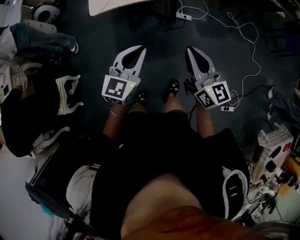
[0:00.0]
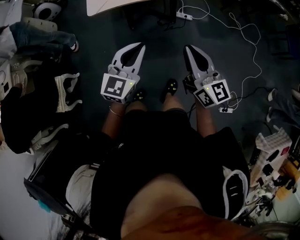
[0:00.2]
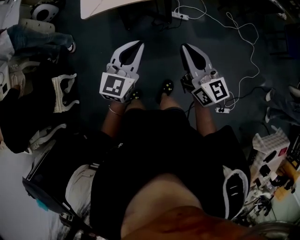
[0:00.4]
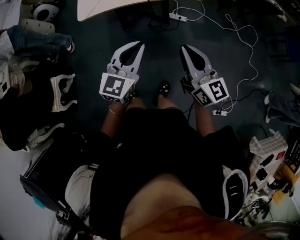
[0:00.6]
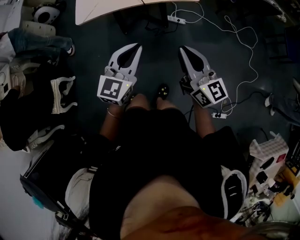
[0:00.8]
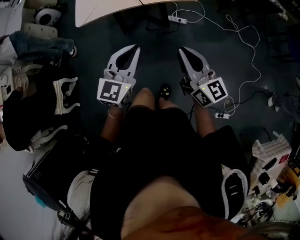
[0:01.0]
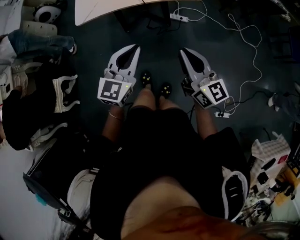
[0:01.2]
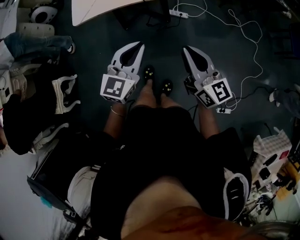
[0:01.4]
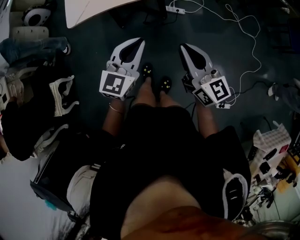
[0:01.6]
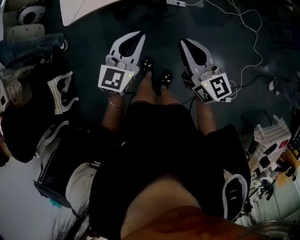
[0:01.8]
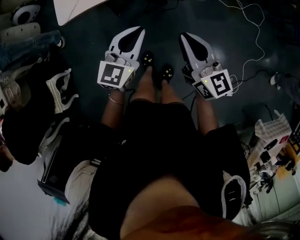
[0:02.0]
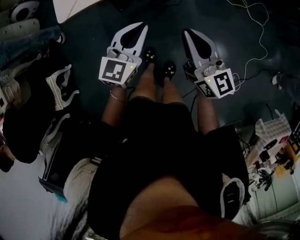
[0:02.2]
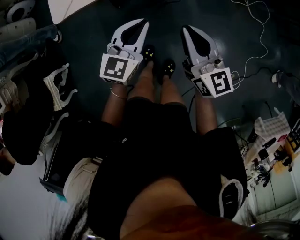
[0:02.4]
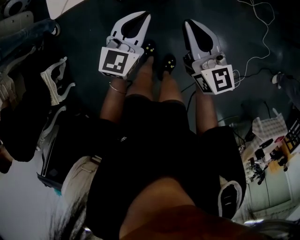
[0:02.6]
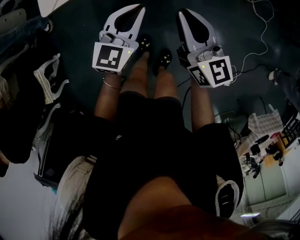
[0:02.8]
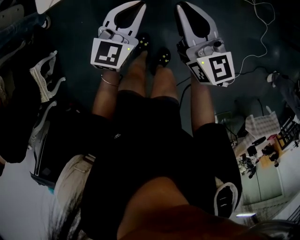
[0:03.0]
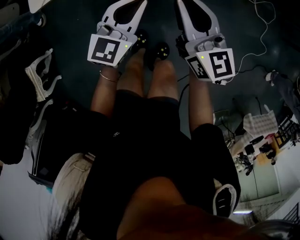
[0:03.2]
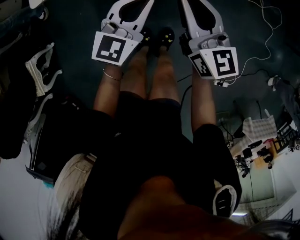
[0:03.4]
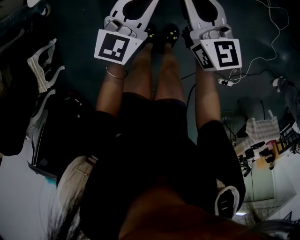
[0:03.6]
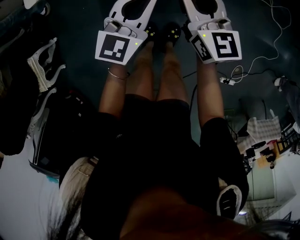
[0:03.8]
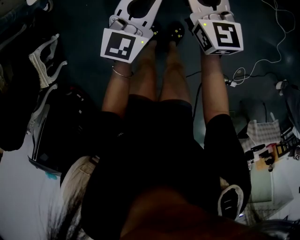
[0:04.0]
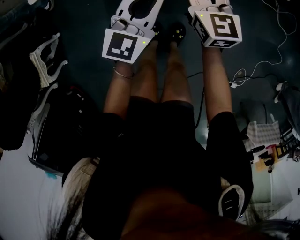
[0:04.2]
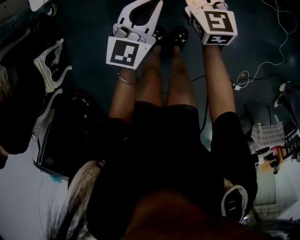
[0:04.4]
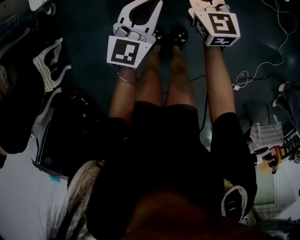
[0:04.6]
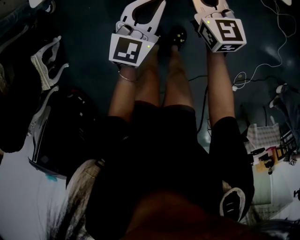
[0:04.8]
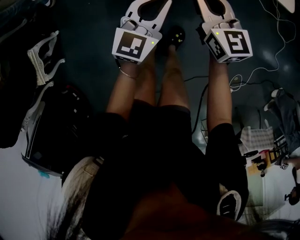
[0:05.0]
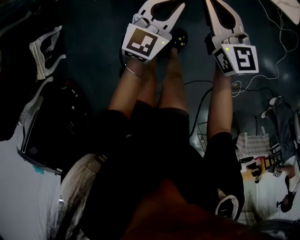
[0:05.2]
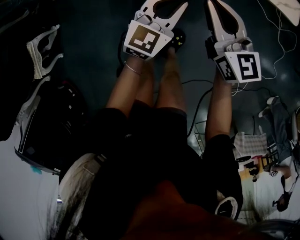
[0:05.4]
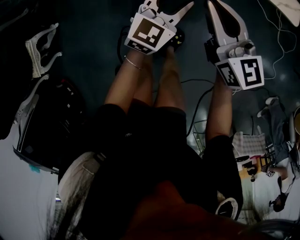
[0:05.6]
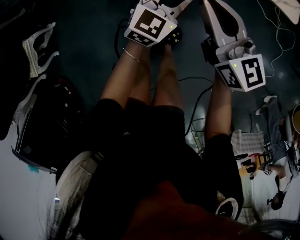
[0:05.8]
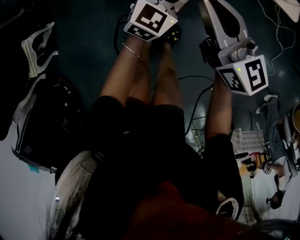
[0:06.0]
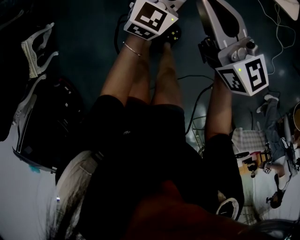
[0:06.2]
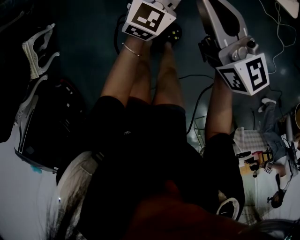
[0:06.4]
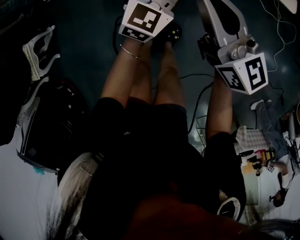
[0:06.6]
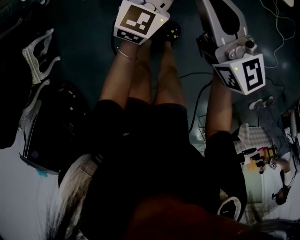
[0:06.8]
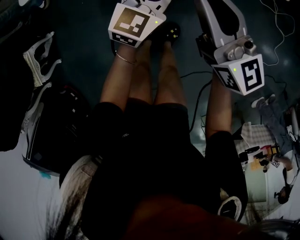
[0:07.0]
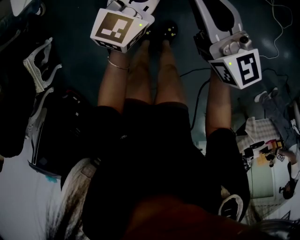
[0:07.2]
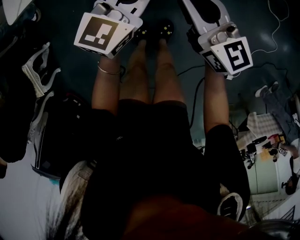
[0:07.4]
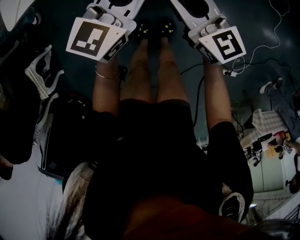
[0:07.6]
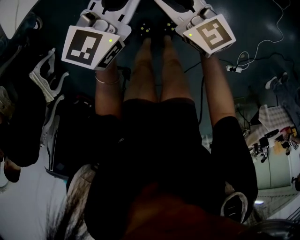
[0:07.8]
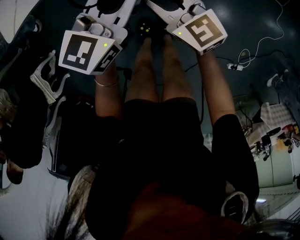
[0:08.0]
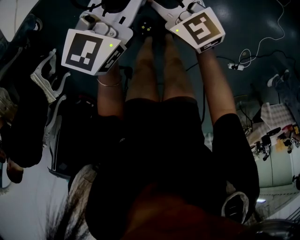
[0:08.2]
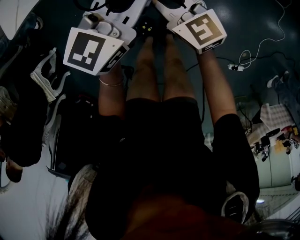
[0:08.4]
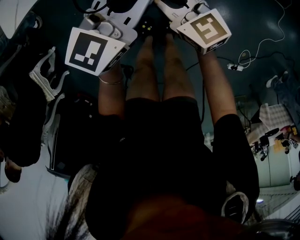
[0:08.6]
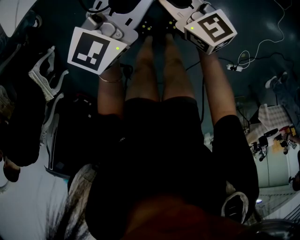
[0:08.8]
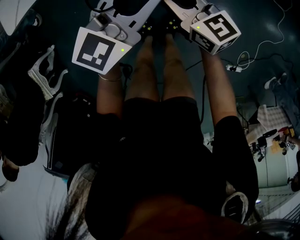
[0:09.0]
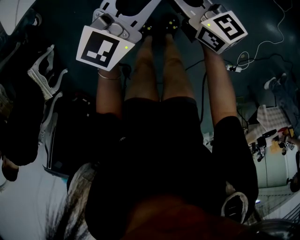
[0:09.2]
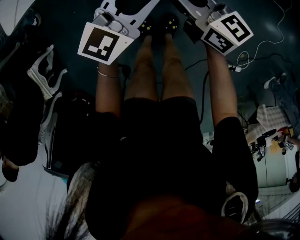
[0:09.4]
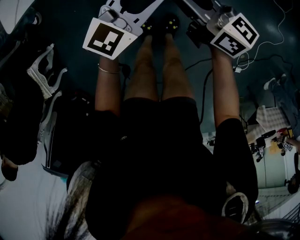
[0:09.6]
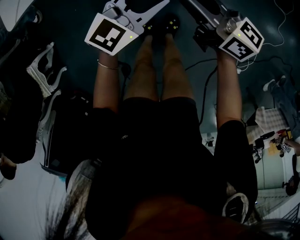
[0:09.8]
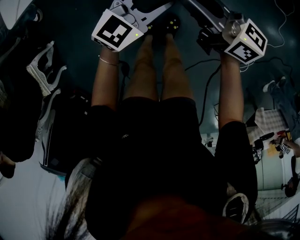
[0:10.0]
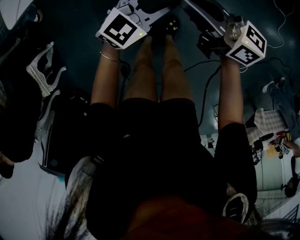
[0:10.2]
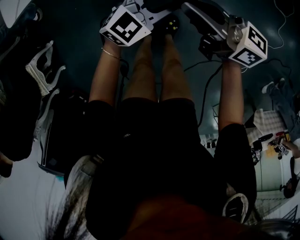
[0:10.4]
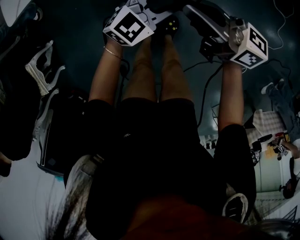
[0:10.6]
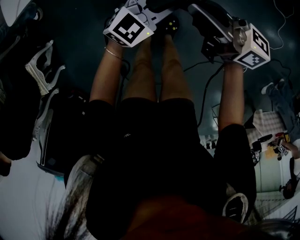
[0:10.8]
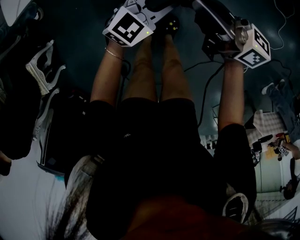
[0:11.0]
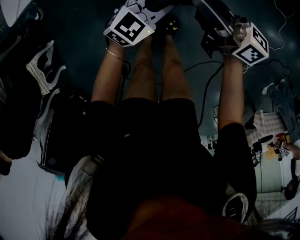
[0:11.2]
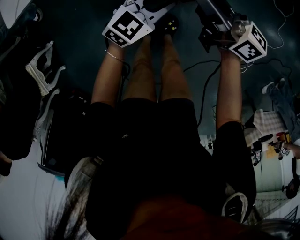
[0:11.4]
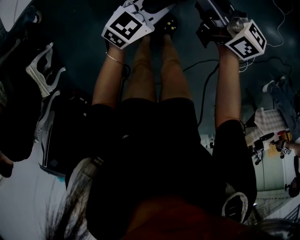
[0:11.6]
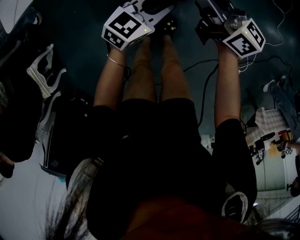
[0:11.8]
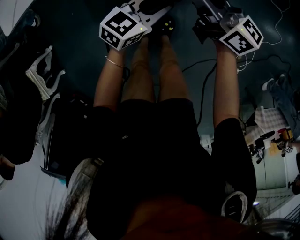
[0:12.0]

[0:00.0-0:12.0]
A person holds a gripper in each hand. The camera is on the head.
0:00.0 to 0:01.6: The two grippers go some 10 cm to the right and forward.
0:01.6 to 0:03.0: The right gripper goes about 20 cm forward, downward and to the left. Meanwhile the left gripper is displaced downward and forward by about 15 cm.
0:03.0 to 0:04.4: The left gripper goes roughly 5 cm downward. Meanwhile the right gripper heads downward and forward, covering some 20 cm, and opens up.
0:04.4 to 0:06.0: The left gripper shifts roughly 10 cm to the right and downward, and opens up. The right gripper is displaced upward and backward by approximately 10 cm, rotates some 30 degrees, and closes its fingers.
0:06.0 to 0:07.6: The left gripper travels upward by some 10 cm, while the right gripper travels downward by some 5 cm.
0:07.6 to 0:09.0: The grippers make only small movements.
0:09.0 to 0:10.4: The right gripper travels upward by approximately 10 cm, and turns by about 30 degrees. The left gripper heads downward, covering approximately 10 cm, and turns by some 20 degrees.
0:10.4 to 0:12.0: The left gripper changes its angle by some 30 degrees. The right gripper ends up some 10 cm from where it was.

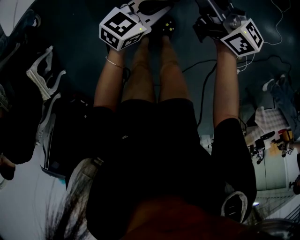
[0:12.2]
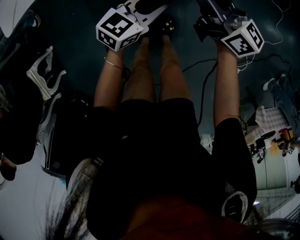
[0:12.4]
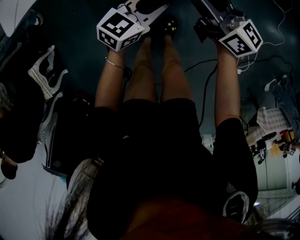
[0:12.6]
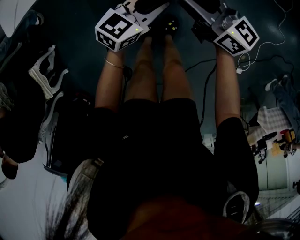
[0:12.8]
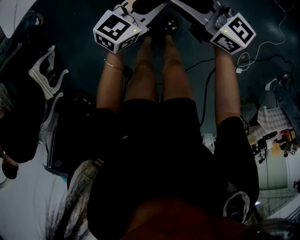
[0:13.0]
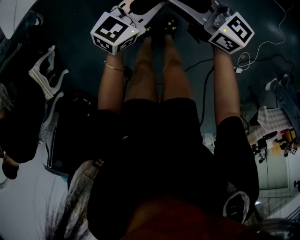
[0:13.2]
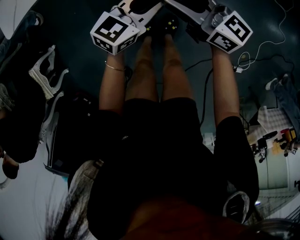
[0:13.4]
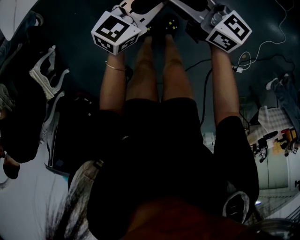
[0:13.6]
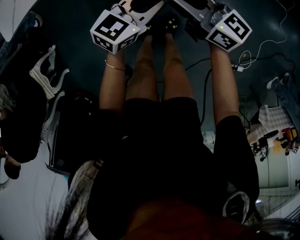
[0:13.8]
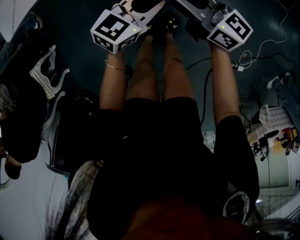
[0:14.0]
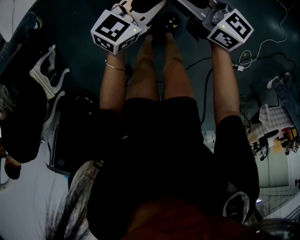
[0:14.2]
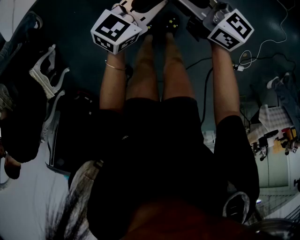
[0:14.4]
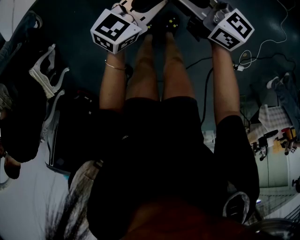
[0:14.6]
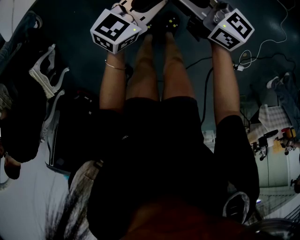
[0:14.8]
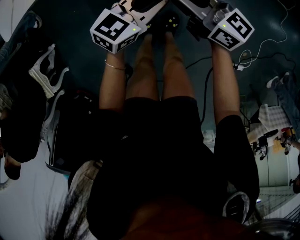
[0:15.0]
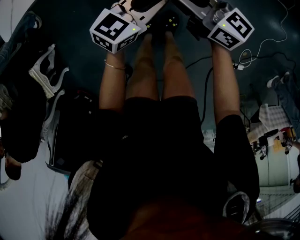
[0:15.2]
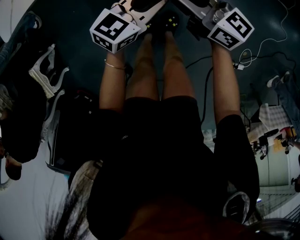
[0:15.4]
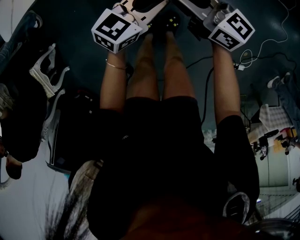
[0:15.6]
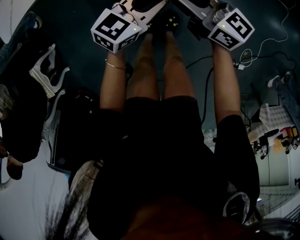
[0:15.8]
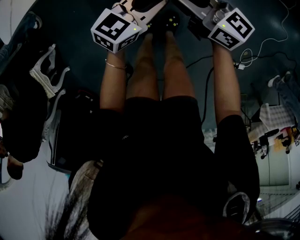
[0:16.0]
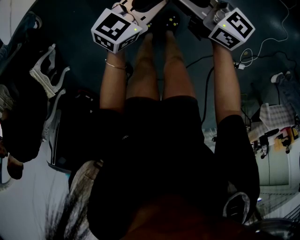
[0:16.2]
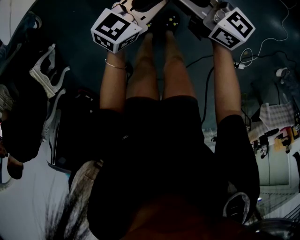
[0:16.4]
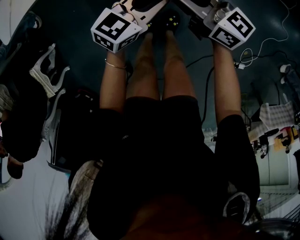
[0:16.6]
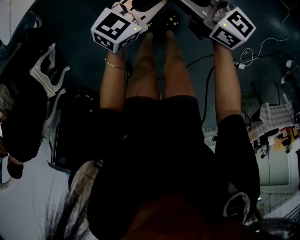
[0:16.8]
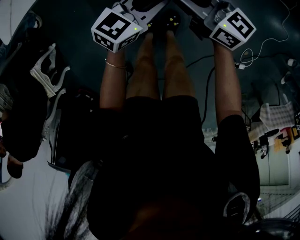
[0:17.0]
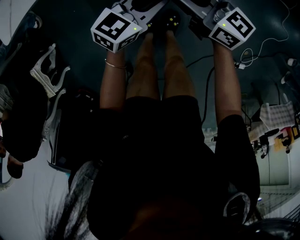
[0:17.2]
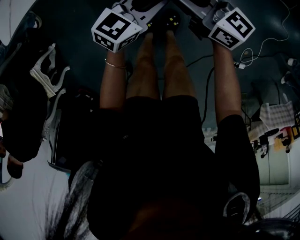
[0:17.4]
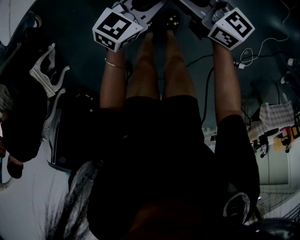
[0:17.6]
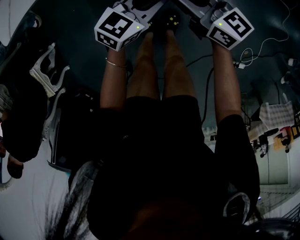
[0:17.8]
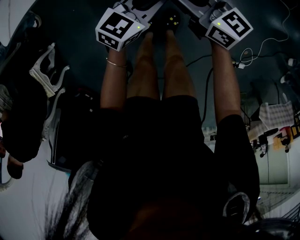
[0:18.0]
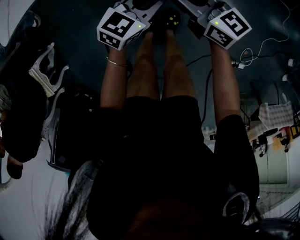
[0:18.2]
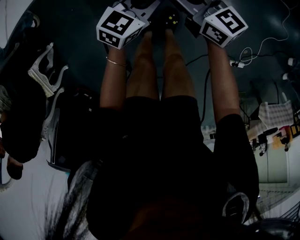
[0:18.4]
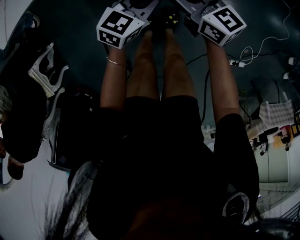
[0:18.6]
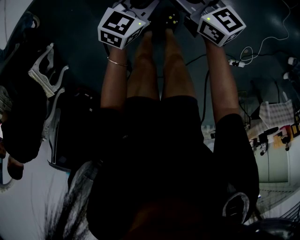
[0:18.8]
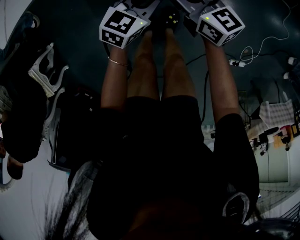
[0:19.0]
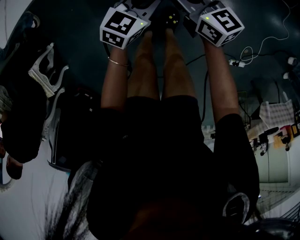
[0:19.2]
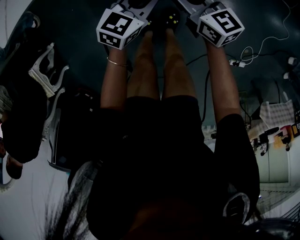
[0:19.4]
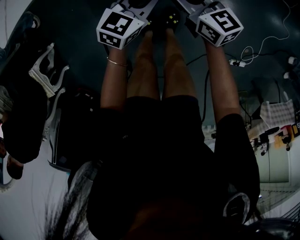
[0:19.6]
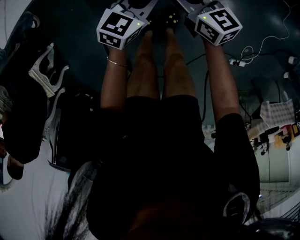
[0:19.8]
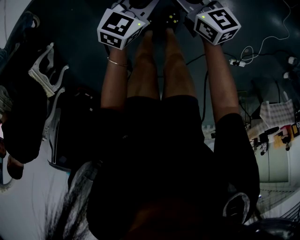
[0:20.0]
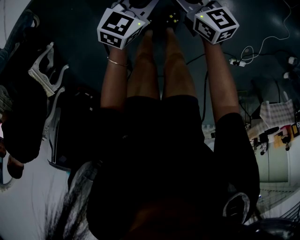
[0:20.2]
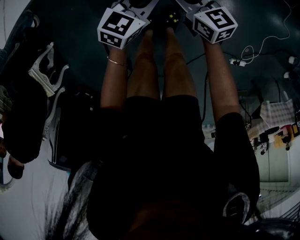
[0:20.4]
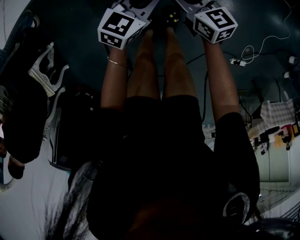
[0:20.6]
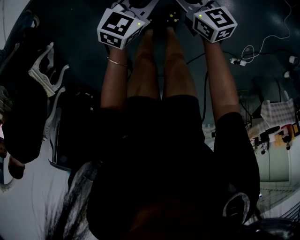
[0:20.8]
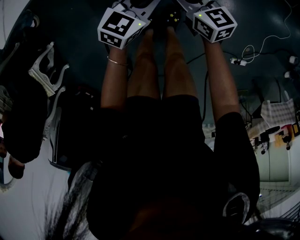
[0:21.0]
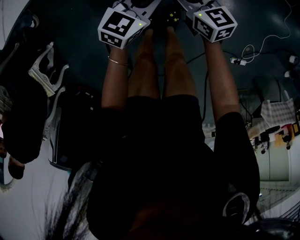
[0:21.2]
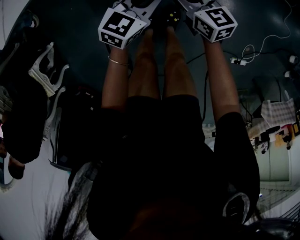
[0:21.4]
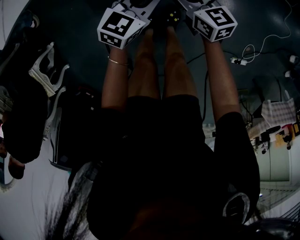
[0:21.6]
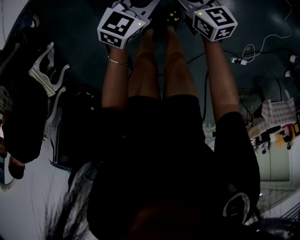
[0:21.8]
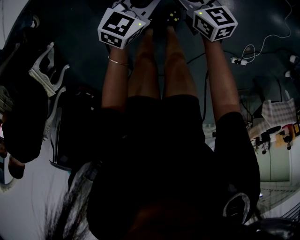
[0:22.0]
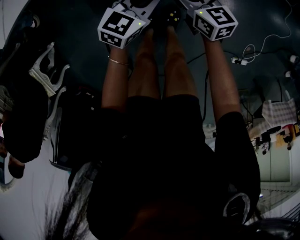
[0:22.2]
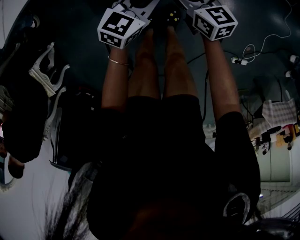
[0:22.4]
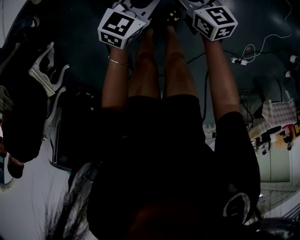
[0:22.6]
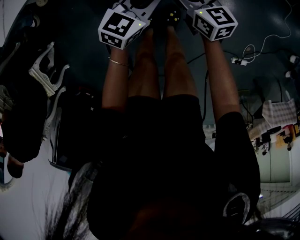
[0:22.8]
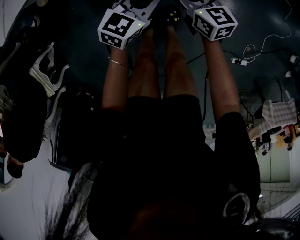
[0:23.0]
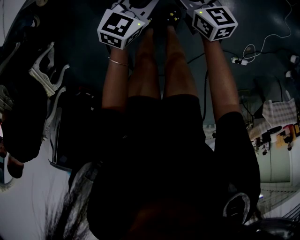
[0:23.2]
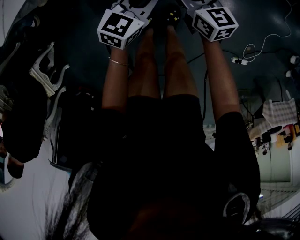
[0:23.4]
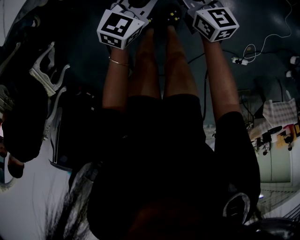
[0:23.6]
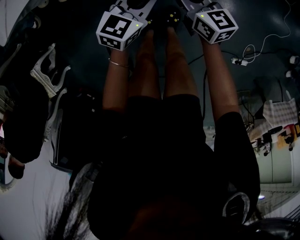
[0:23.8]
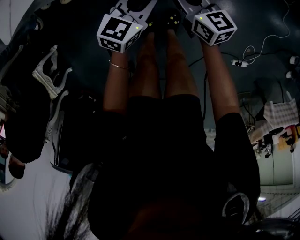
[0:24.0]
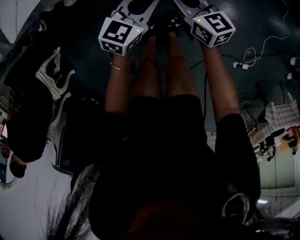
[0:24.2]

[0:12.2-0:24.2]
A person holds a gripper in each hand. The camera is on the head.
0:12.2 to 0:13.8: The right gripper changes place by approximately 5 cm.
0:13.8 to 0:16.6: Both grippers stay put.
0:16.6 to 0:18.2: There are only small adjustments of the grippers.
0:18.2 to 0:19.8: The grippers make only small movements.
0:19.8 to 0:21.2: The grippers stay close to where they were, moving slightly.
0:21.2 to 0:22.6: Neither gripper changes place.
0:22.6 to 0:24.2: The right gripper closes.
